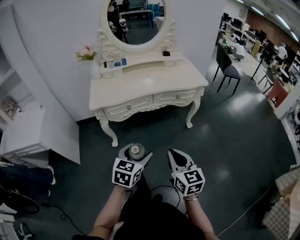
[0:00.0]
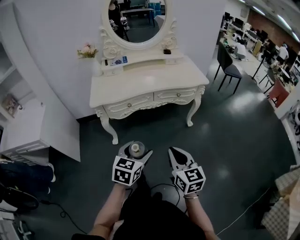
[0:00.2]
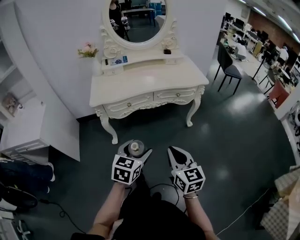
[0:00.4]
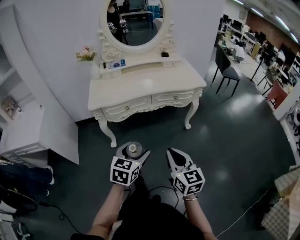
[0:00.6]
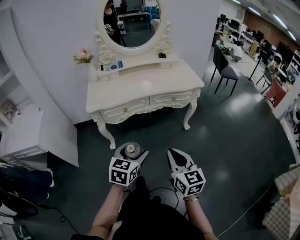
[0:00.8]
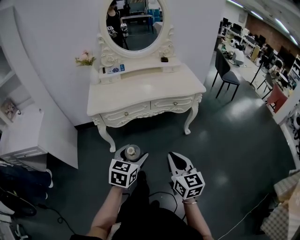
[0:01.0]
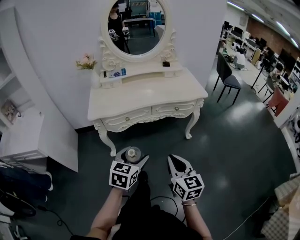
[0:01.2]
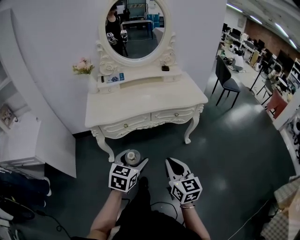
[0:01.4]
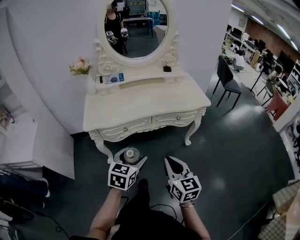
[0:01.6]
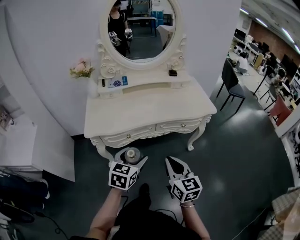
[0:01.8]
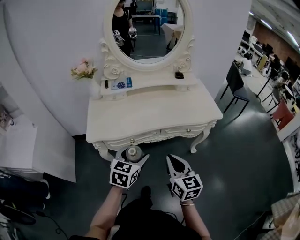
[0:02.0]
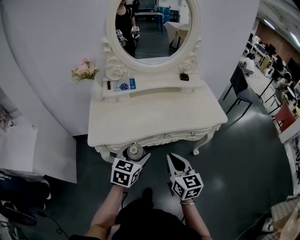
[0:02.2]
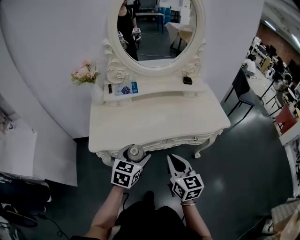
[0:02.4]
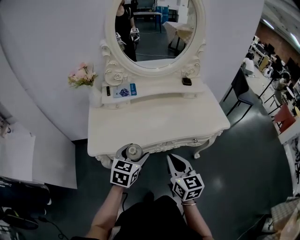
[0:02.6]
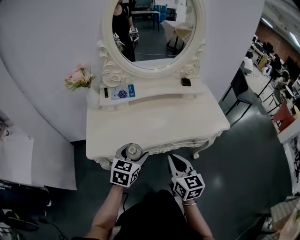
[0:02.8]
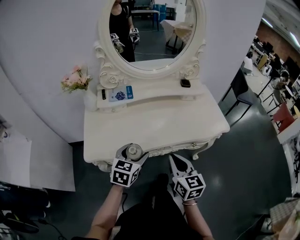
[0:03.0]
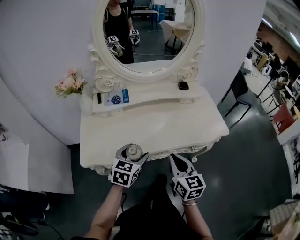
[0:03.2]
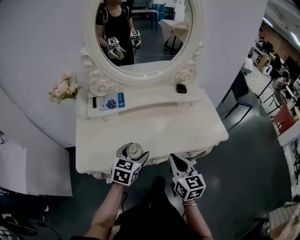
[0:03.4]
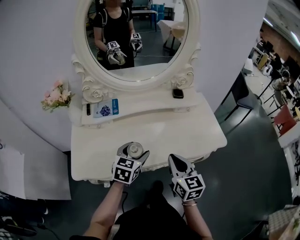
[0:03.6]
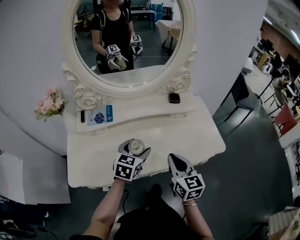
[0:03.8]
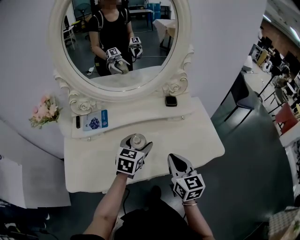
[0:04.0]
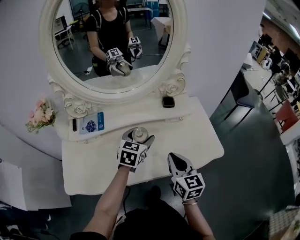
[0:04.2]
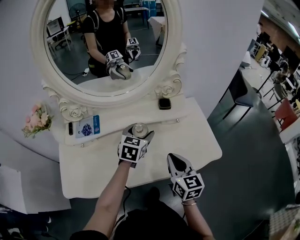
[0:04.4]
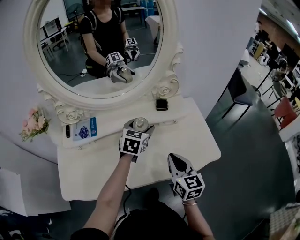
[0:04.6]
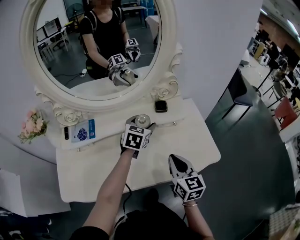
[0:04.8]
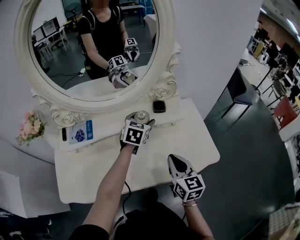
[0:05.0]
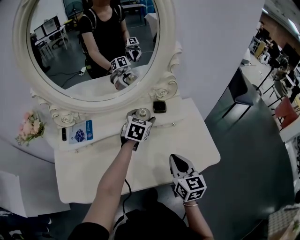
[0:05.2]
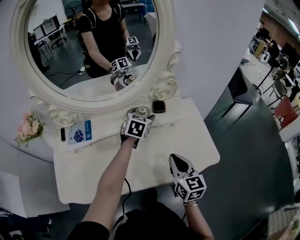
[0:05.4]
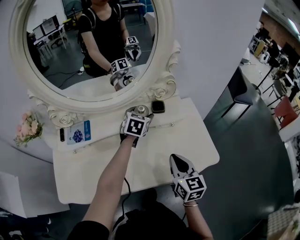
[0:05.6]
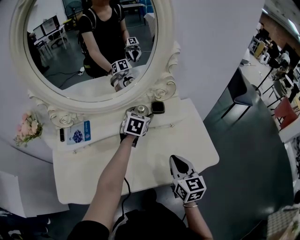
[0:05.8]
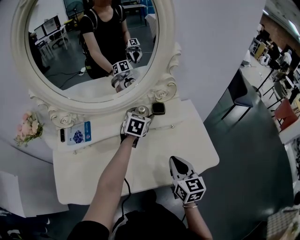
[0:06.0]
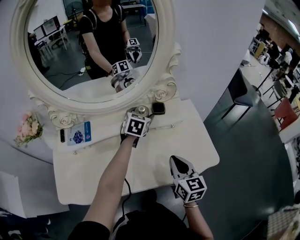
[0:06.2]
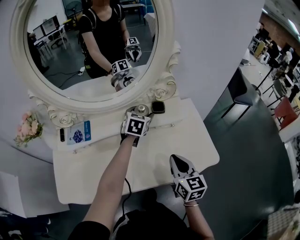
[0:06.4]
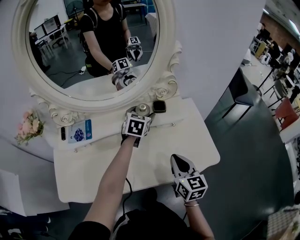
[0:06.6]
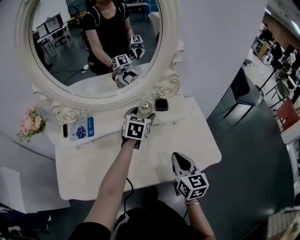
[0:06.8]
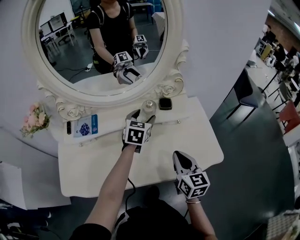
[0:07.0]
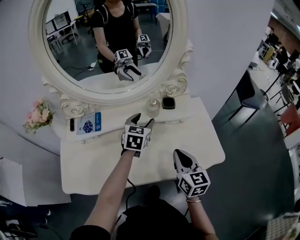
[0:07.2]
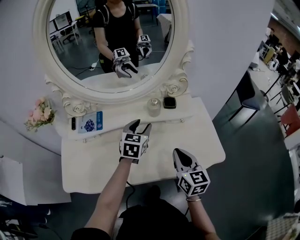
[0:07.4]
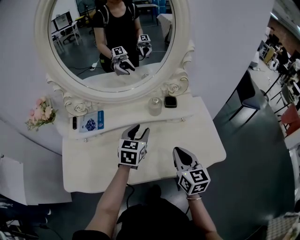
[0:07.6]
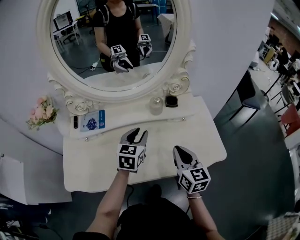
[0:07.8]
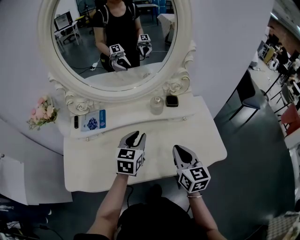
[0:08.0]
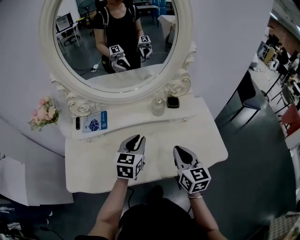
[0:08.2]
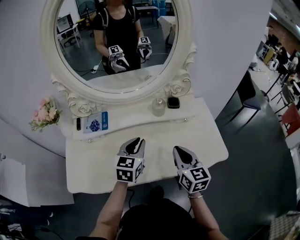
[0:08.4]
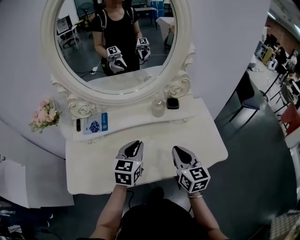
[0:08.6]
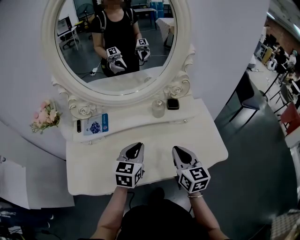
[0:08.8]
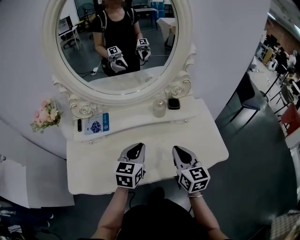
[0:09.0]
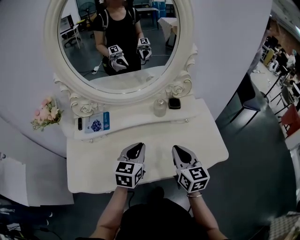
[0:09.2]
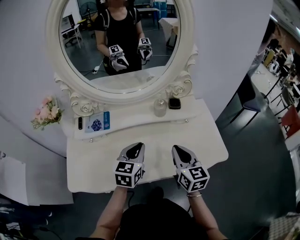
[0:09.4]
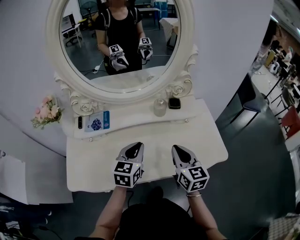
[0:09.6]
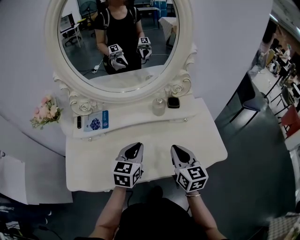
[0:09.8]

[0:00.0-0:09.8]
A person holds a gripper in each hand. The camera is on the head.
0:00.0 to 0:01.4: The two grippers go approximately 10 cm forward.
0:01.4 to 0:02.8: The grippers both shift forward by about 30 cm.
0:02.8 to 0:04.2: The two grippers go some 30 cm forward and to the right.
0:04.2 to 0:05.6: The left gripper moves forward, approximately 15 cm; the right gripper travels to the right by some 5 cm.
0:05.6 to 0:07.0: The left gripper moves about 5 cm.
0:07.0 to 0:08.4: The left gripper heads backward and to the left, covering roughly 15 cm, and closes.
0:08.4 to 0:09.8: The grippers move only a little.

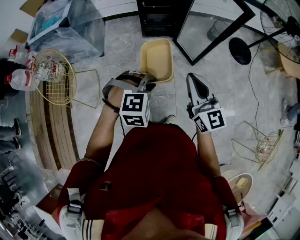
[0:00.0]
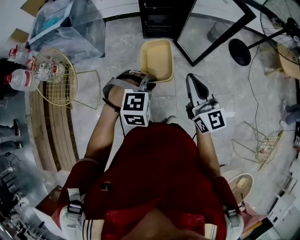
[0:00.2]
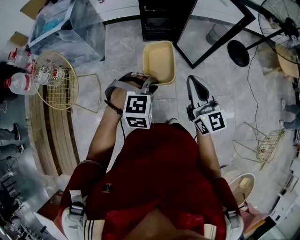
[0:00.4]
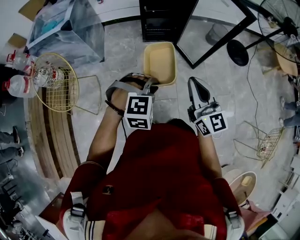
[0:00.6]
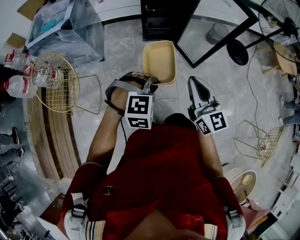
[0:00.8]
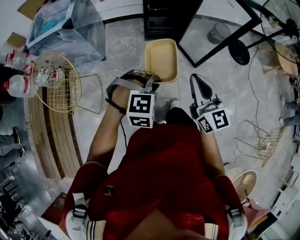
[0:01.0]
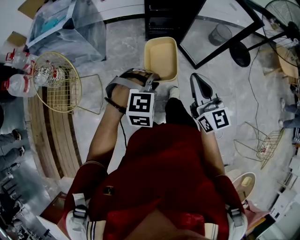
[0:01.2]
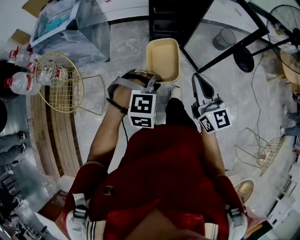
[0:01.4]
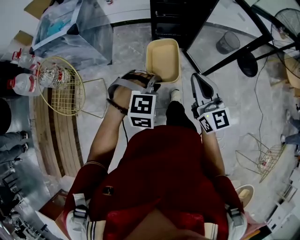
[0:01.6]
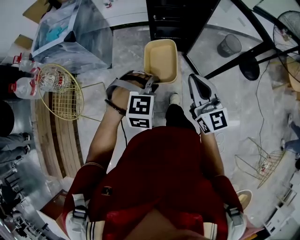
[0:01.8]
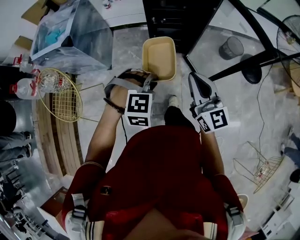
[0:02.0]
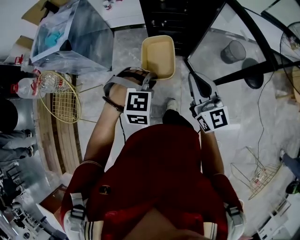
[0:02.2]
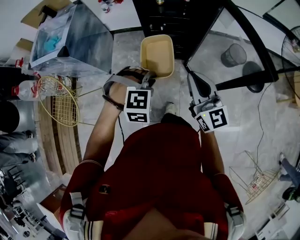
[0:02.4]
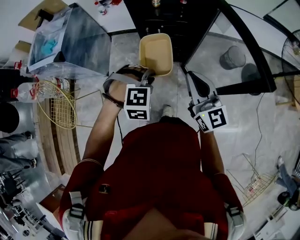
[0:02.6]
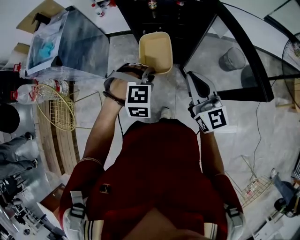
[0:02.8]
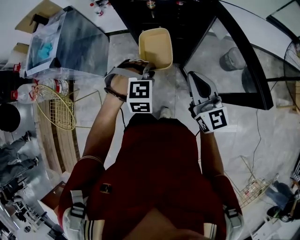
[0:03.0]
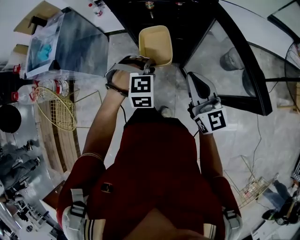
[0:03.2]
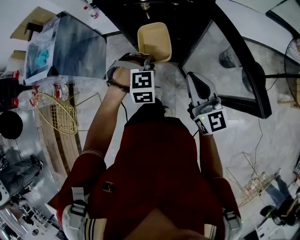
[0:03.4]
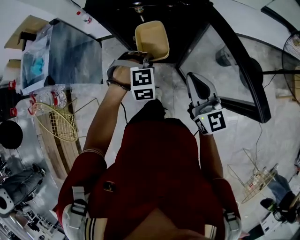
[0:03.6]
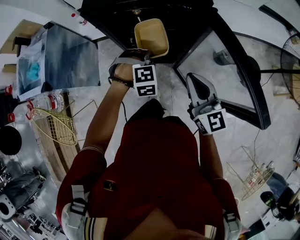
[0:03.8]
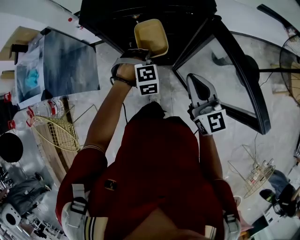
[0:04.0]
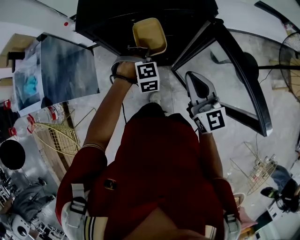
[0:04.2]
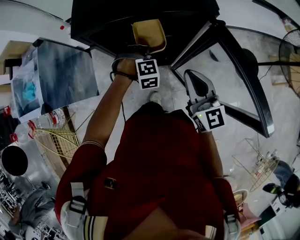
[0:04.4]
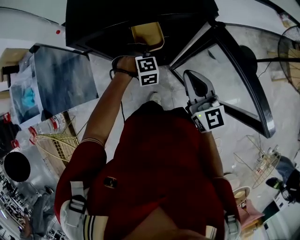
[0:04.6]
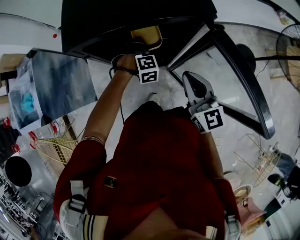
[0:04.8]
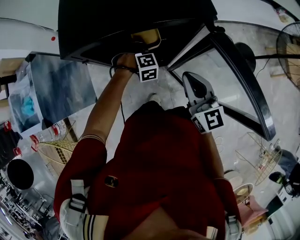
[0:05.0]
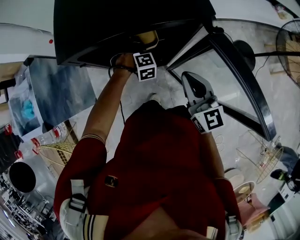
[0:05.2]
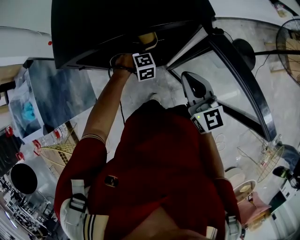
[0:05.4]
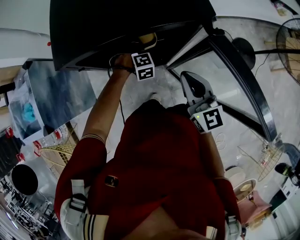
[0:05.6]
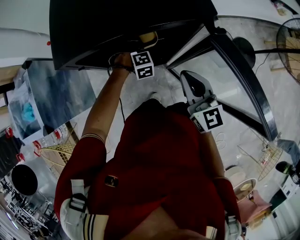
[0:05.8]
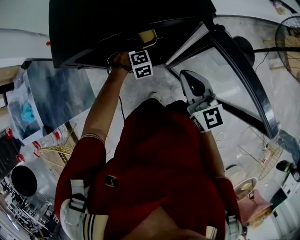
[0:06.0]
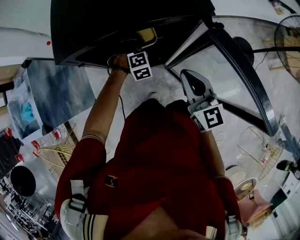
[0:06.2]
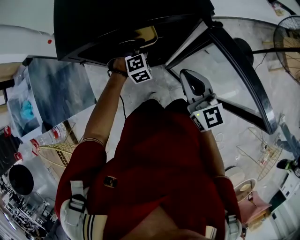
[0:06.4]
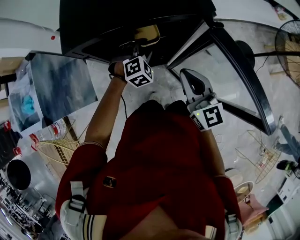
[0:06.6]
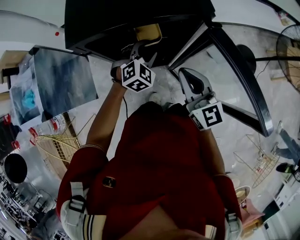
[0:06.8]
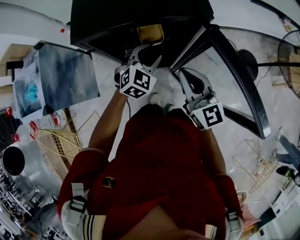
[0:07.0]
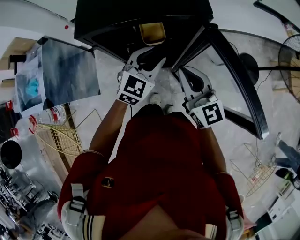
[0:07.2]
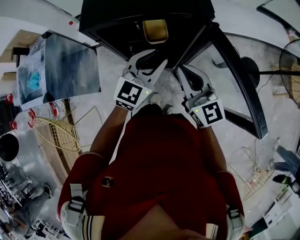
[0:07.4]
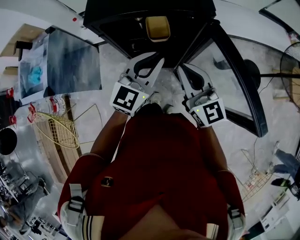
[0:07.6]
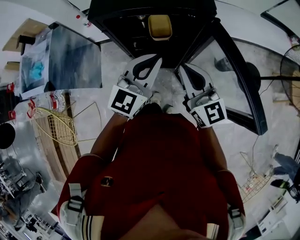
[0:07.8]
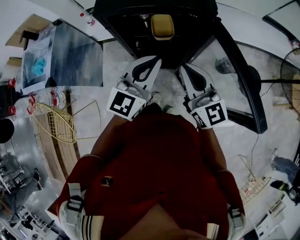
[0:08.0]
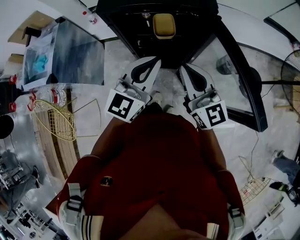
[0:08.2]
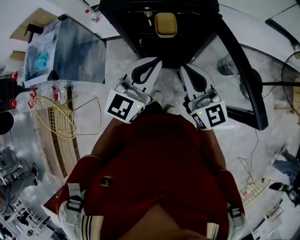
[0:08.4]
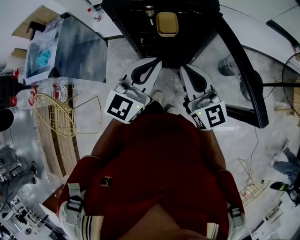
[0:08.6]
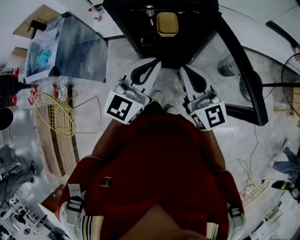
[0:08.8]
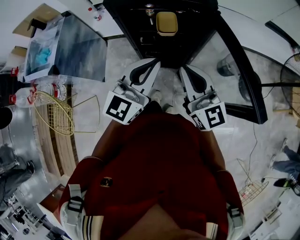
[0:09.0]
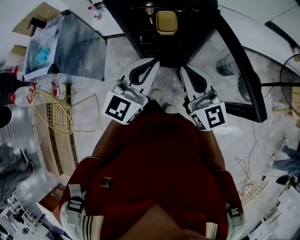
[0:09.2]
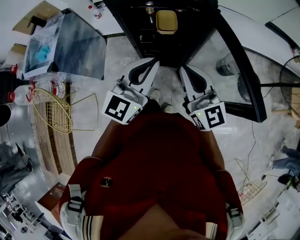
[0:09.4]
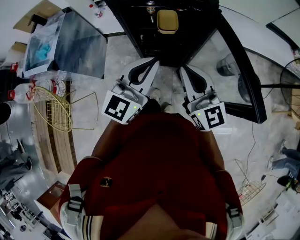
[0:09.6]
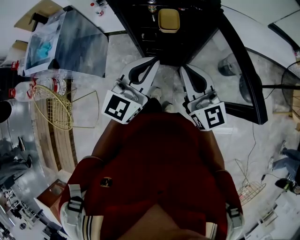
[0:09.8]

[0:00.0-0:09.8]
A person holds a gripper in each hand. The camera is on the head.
0:00.0 to 0:01.4: The two grippers go approximately 10 cm to the left and forward.
0:01.4 to 0:02.8: The two grippers go approximately 40 cm forward and to the right.
0:02.8 to 0:04.2: The right gripper travels forward by some 15 cm; the left gripper moves forward, some 25 cm.
0:04.2 to 0:05.6: The right gripper heads forward, covering about 5 cm. The left gripper goes about 15 cm downward and forward.
0:05.6 to 0:07.0: The right gripper changes place by about 5 cm; the left gripper travels upward by approximately 20 cm, tips its fingers upward by approximately 40 degrees, and opens its fingers.
0:07.0 to 0:08.4: The right gripper shifts some 10 cm backward and upward. The left gripper travels upward and backward by about 25 cm, angles its fingers upward, by roughly 30 degrees, and closes its fingers.
0:08.4 to 0:09.8: The grippers make only small movements.

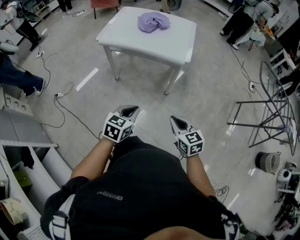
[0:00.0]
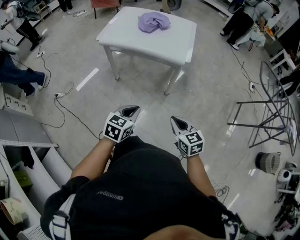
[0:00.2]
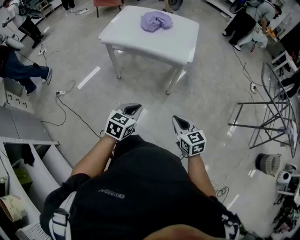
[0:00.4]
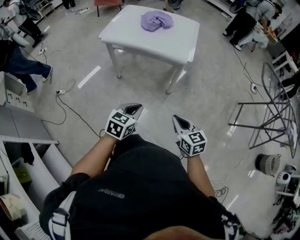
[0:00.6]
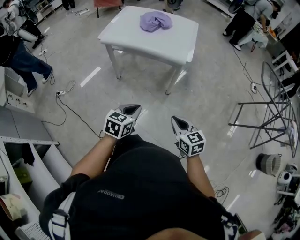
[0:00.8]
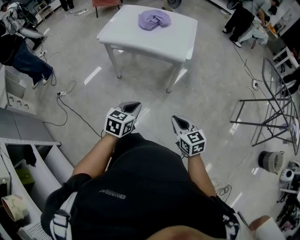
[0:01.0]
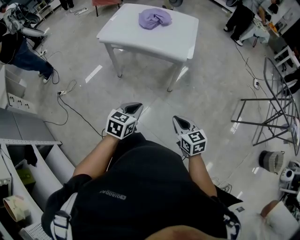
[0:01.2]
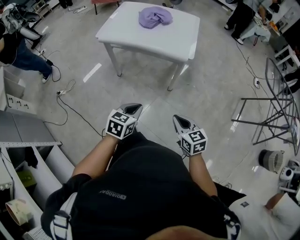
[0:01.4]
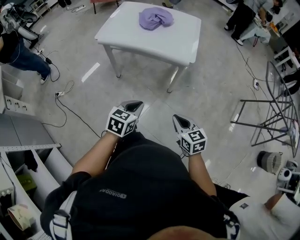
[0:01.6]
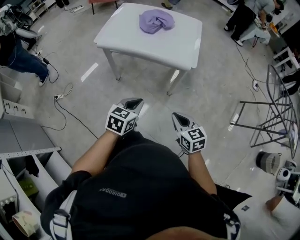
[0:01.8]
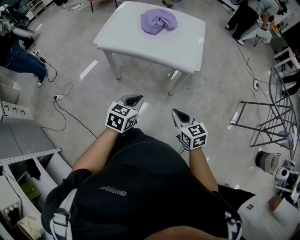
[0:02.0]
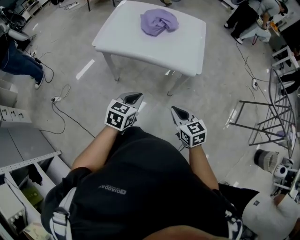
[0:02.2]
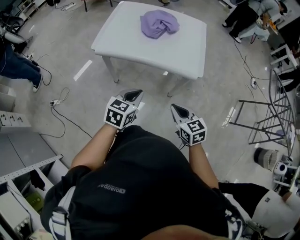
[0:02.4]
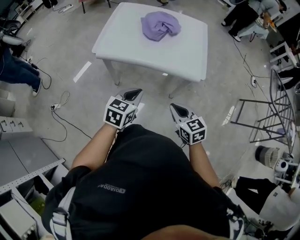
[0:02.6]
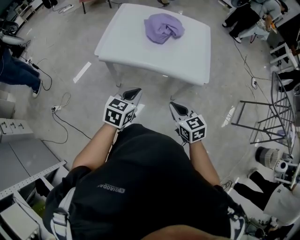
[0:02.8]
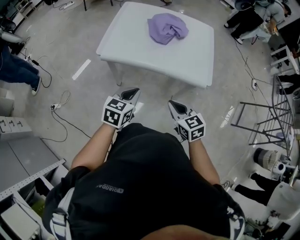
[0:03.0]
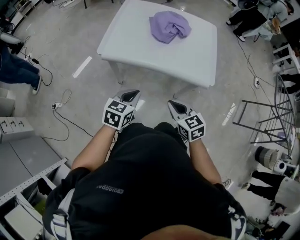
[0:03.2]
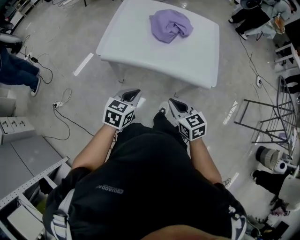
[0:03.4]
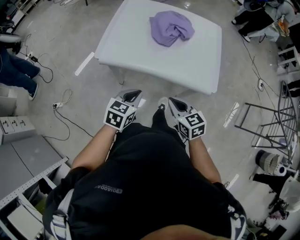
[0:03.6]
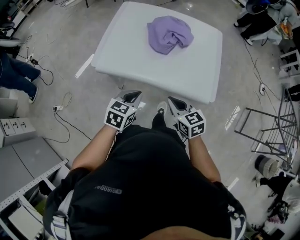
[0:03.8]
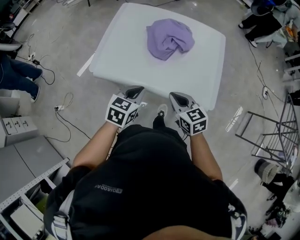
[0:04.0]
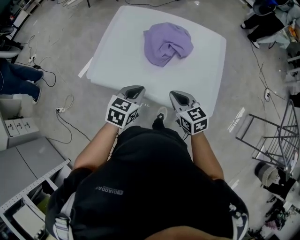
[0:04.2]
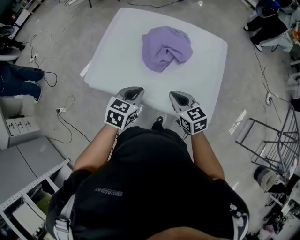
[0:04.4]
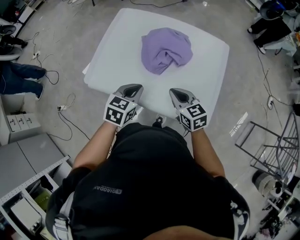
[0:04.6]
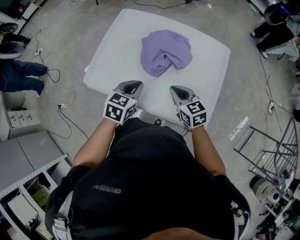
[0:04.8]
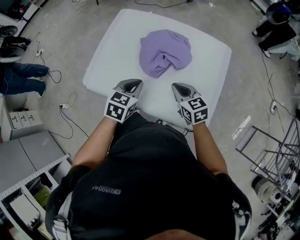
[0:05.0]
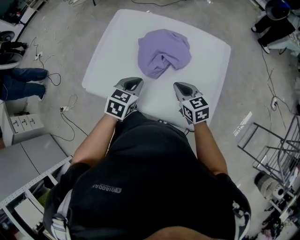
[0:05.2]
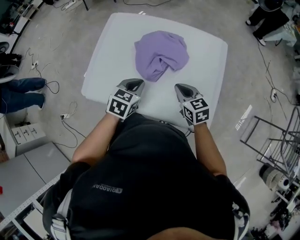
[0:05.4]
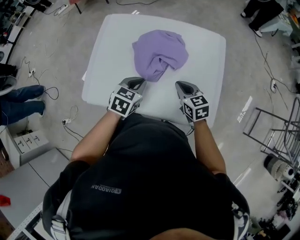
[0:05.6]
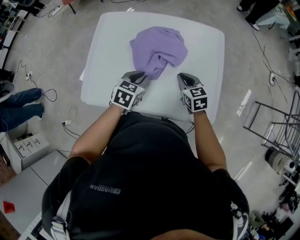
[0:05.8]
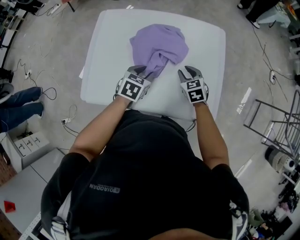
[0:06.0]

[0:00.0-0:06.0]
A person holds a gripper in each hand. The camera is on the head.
0:00.0 to 0:01.6: The right gripper changes place by approximately 5 cm. The left gripper moves forward, some 5 cm.
0:01.6 to 0:03.0: The grippers both shift forward and to the left by some 30 cm.
0:03.0 to 0:04.4: The grippers both shift forward by roughly 25 cm.
0:04.4 to 0:06.0: The right gripper heads forward, downward and to the right, covering roughly 20 cm, swivels about 20 degrees, and opens up, while the left gripper shifts some 15 cm forward and downward, and opens up.
